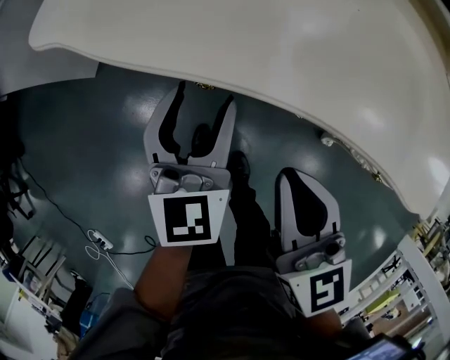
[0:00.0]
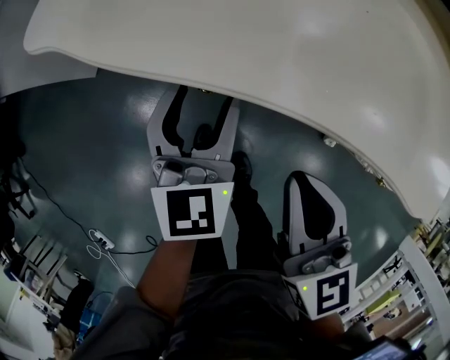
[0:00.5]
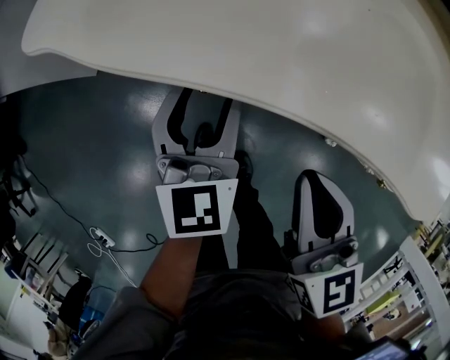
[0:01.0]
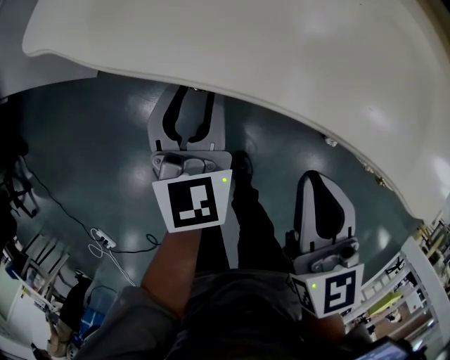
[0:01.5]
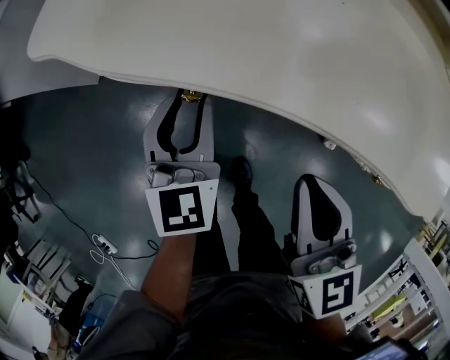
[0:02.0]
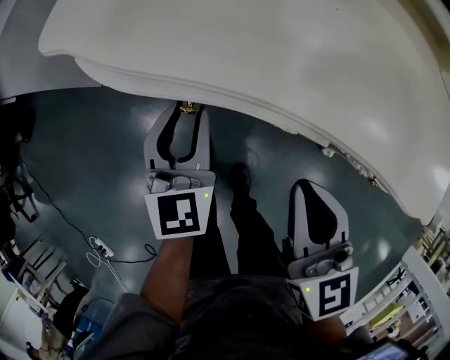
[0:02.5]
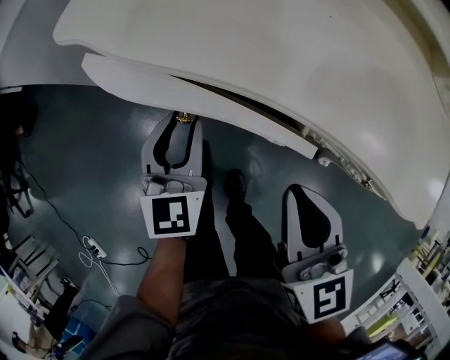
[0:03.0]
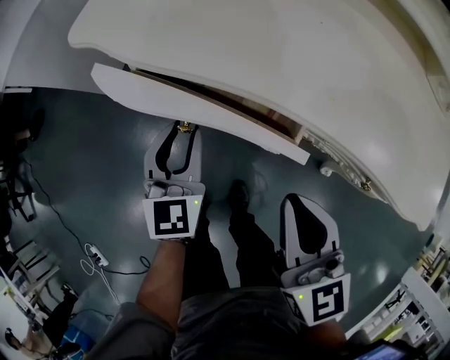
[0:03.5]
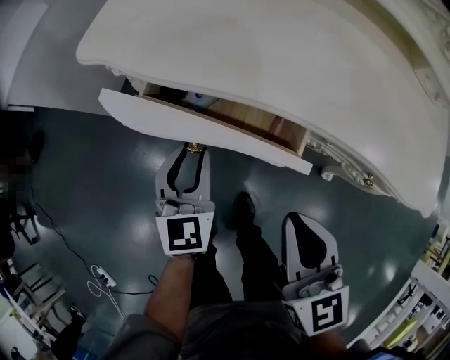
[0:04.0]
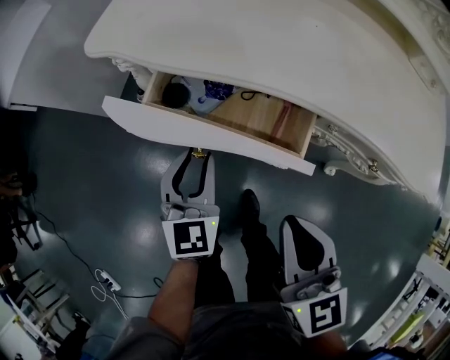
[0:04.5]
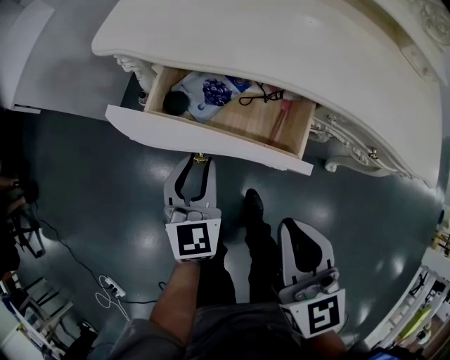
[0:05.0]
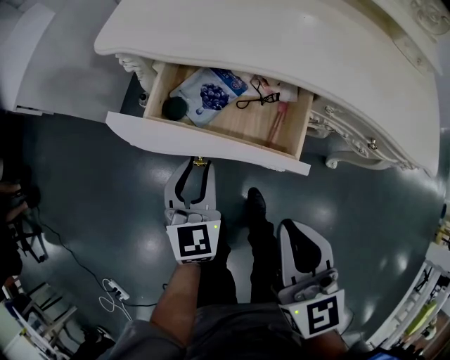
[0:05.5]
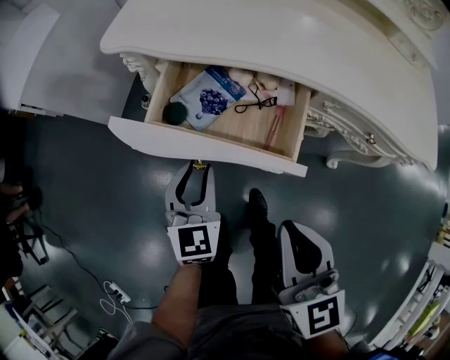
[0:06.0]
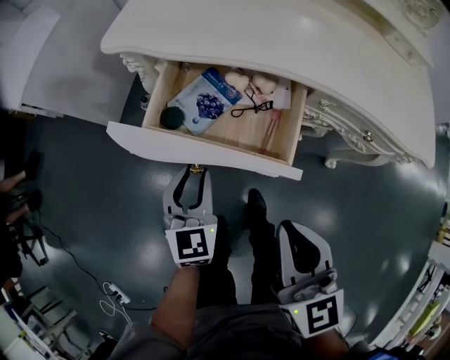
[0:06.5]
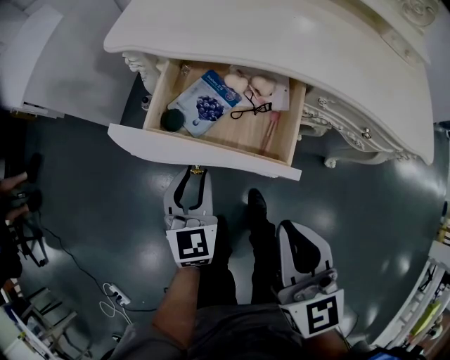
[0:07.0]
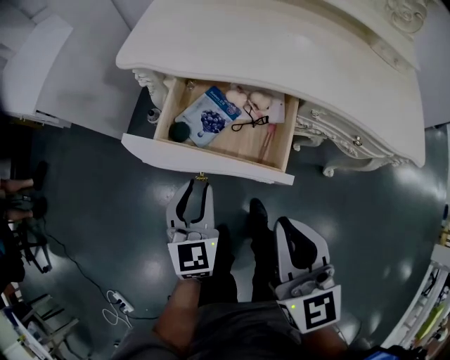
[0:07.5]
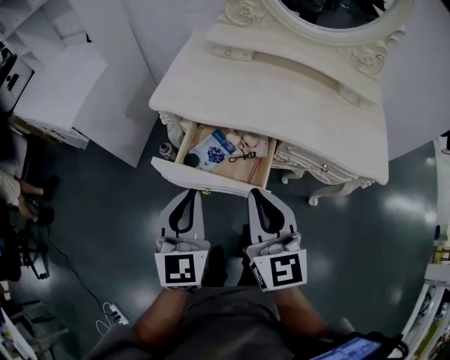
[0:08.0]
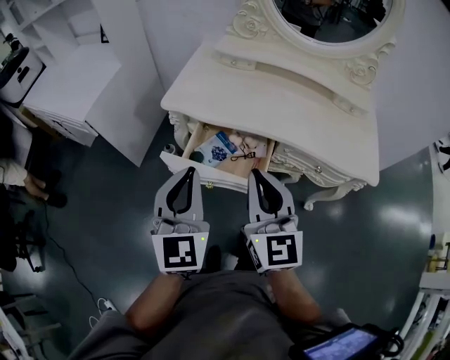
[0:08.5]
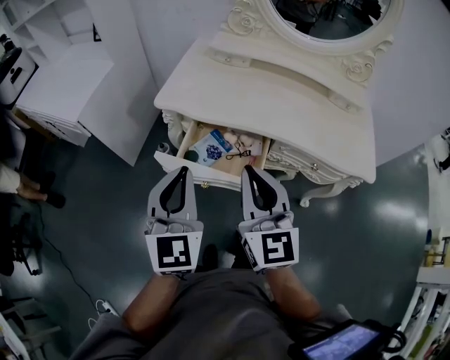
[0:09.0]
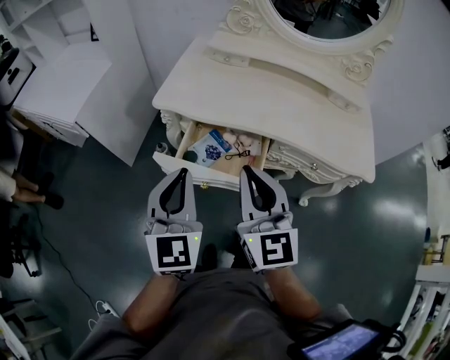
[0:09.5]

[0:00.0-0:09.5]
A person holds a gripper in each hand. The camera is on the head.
0:00.0 to 0:02.0: The left gripper closes.
0:02.0 to 0:04.0: The two grippers go roughly 5 cm backward.
0:04.0 to 0:05.5: The two grippers go roughly 5 cm backward.
0:05.5 to 0:07.5: The right gripper changes place by roughly 5 cm. The left gripper is displaced backward by about 5 cm.
0:07.5 to 0:09.5: The right gripper shifts some 15 cm upward. The left gripper shifts about 30 cm upward, and closes.

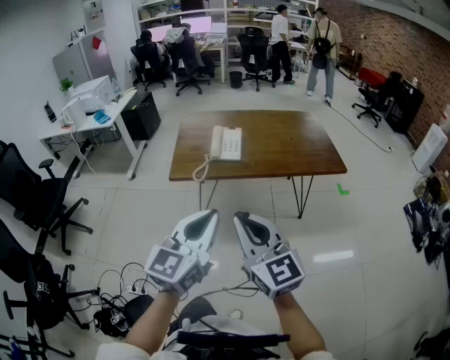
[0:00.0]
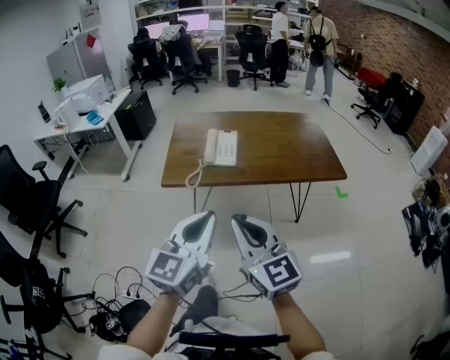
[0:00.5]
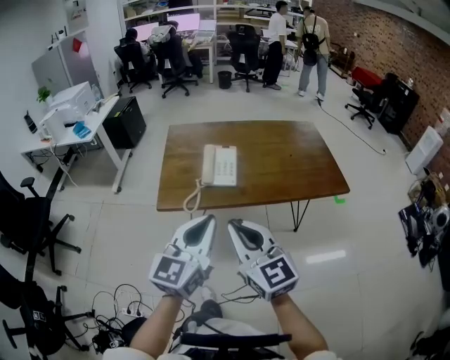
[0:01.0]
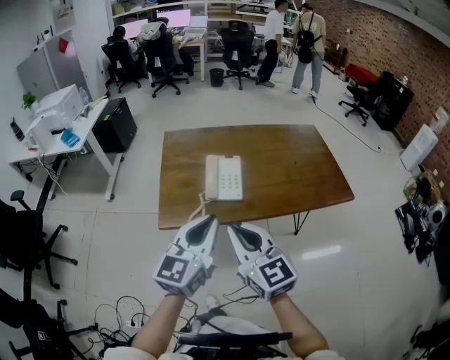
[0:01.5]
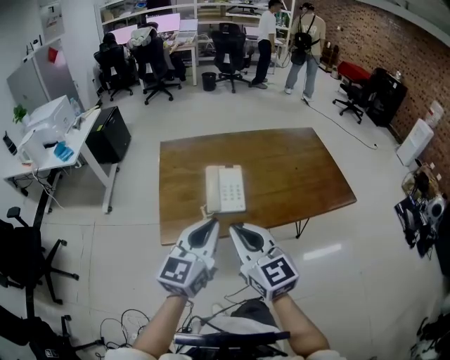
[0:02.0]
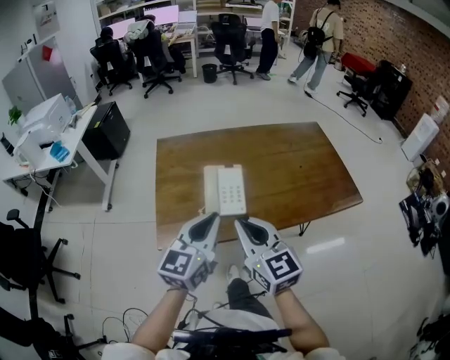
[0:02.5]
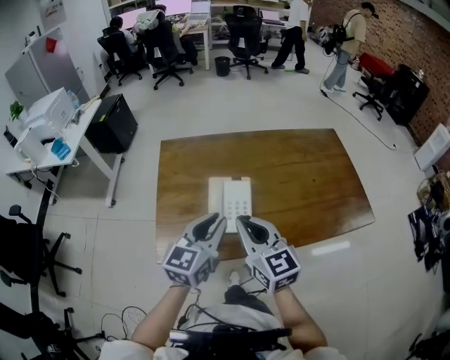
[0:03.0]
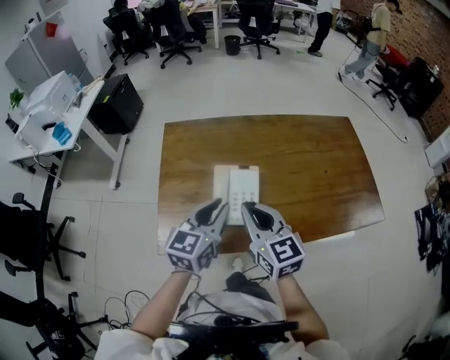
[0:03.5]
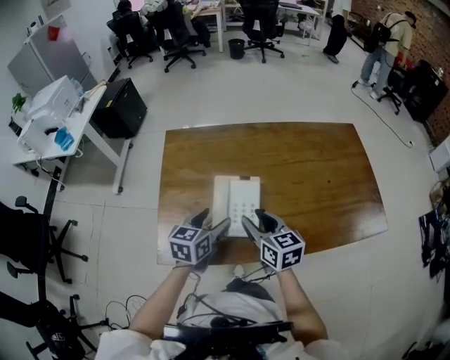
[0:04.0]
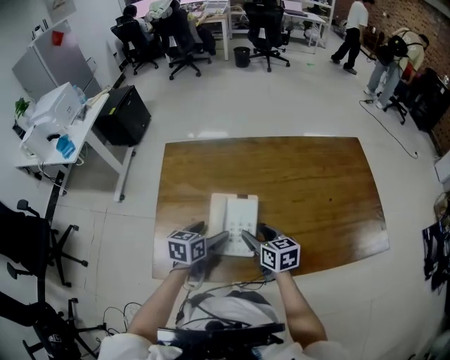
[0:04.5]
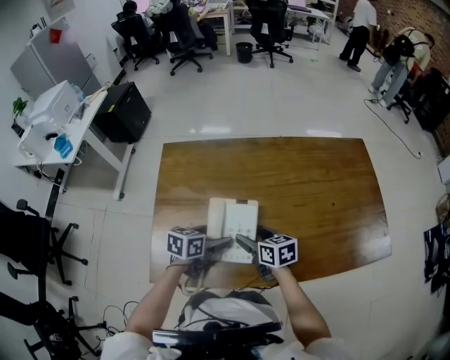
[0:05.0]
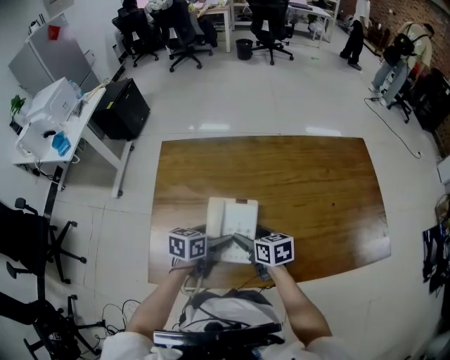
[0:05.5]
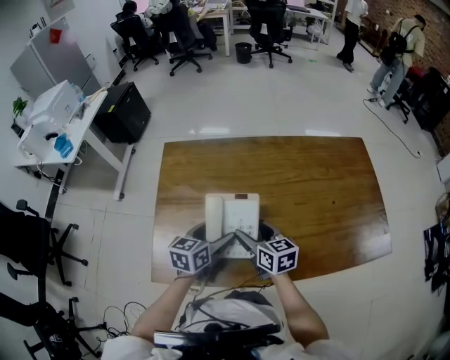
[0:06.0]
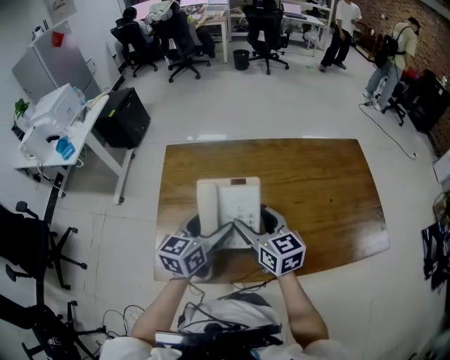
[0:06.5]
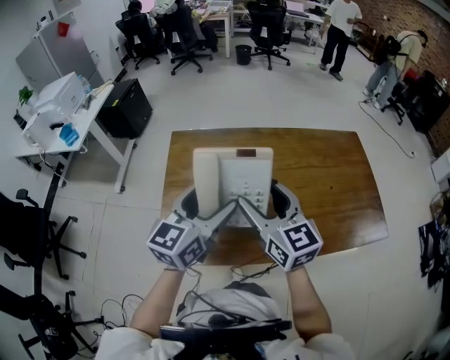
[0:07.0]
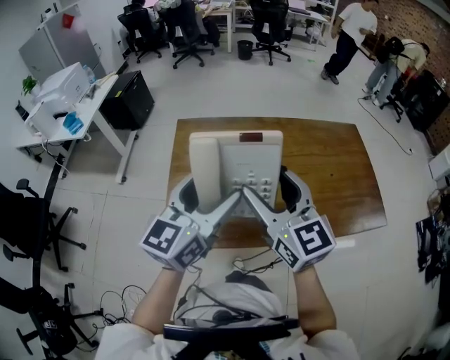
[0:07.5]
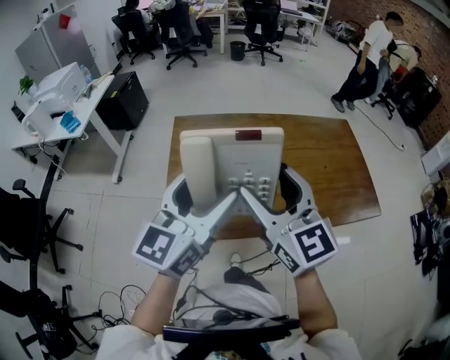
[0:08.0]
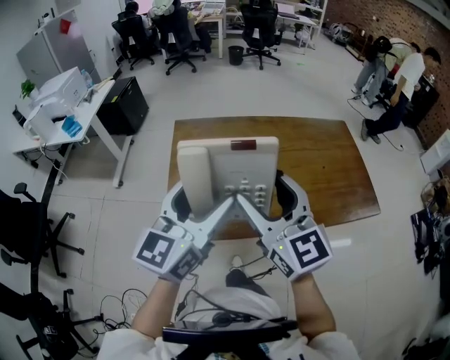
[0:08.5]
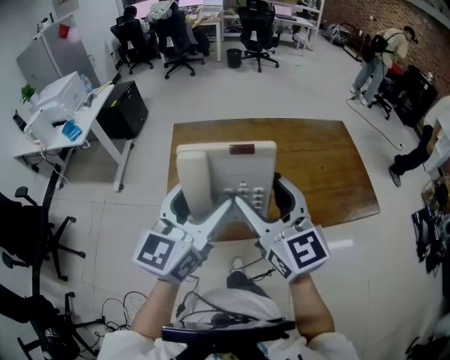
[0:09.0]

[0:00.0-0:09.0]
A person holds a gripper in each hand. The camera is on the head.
0:00.0 to 0:02.0: The two grippers go about 30 cm forward.
0:02.0 to 0:04.5: Both grippers travel together downward and forward, about 35 cm. The right gripper turns by roughly 40 degrees, and opens up. The left gripper tilts its fingers about 30 degrees downward, and opens up.
0:04.5 to 0:07.0: Both grippers travel together upward, approximately 25 cm. The left gripper swivels approximately 30 degrees, while the right gripper turns by approximately 30 degrees.
0:07.0 to 0:09.0: The two grippers go some 15 cm backward and upward.

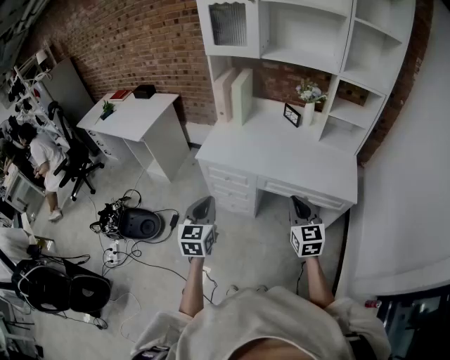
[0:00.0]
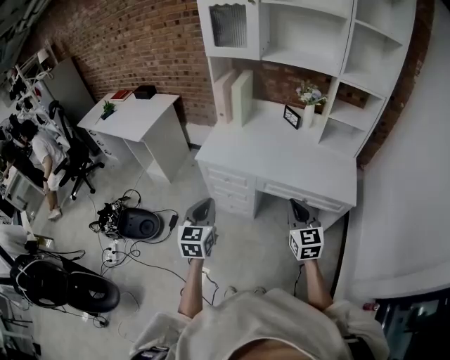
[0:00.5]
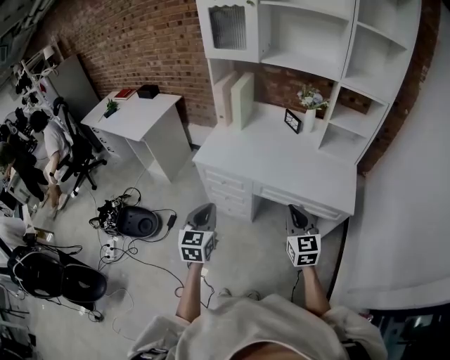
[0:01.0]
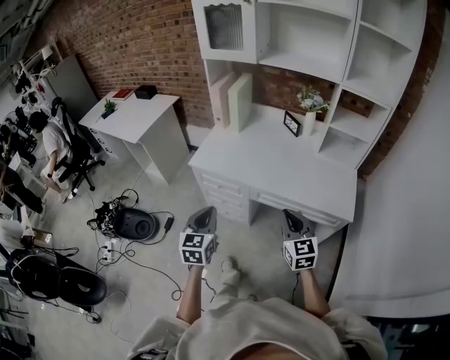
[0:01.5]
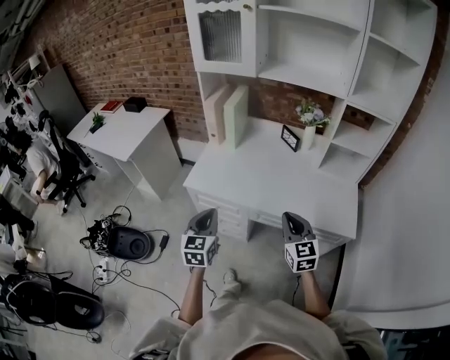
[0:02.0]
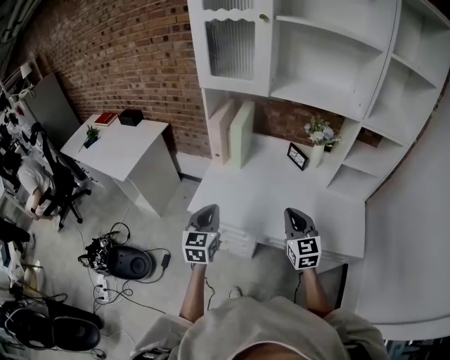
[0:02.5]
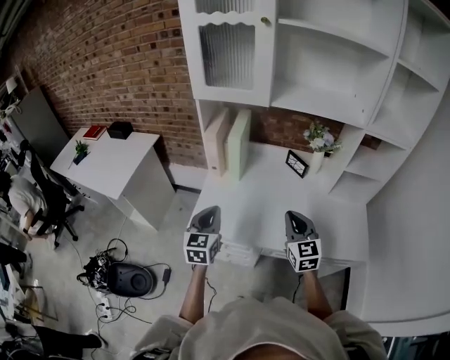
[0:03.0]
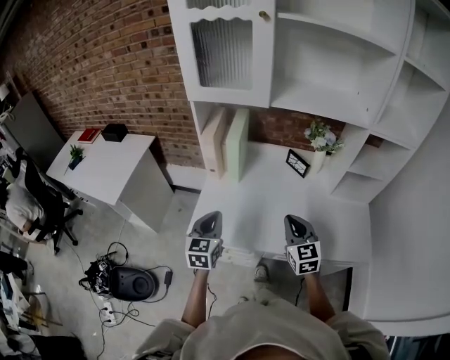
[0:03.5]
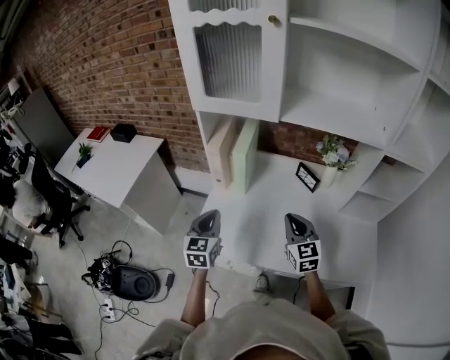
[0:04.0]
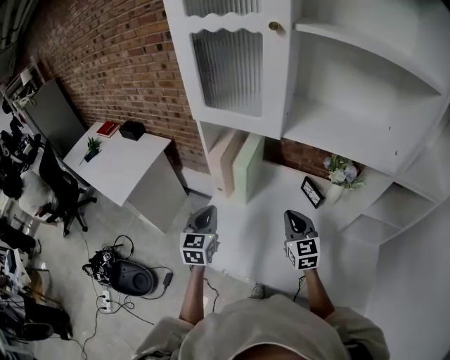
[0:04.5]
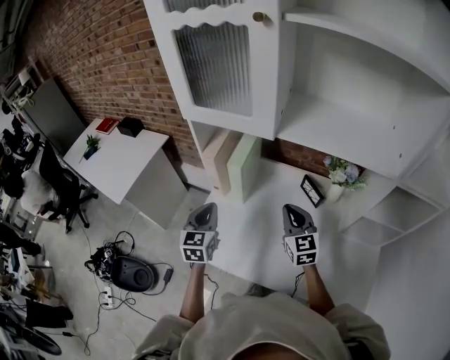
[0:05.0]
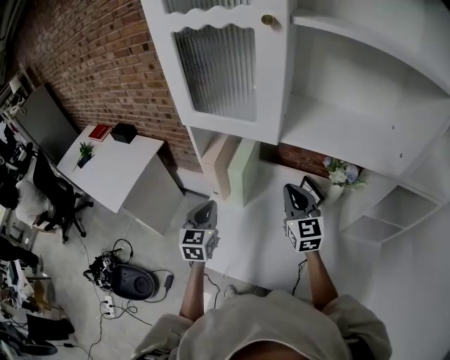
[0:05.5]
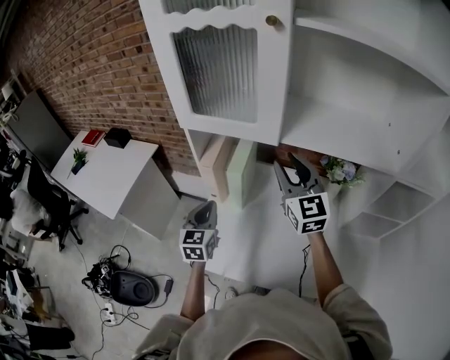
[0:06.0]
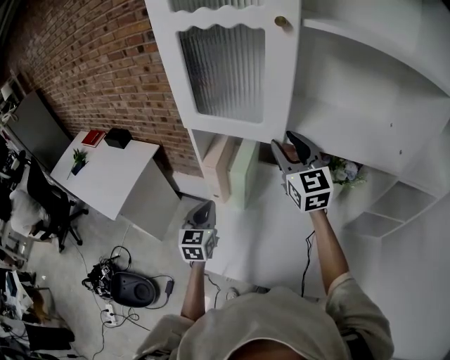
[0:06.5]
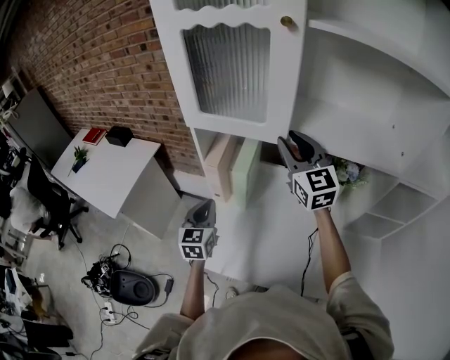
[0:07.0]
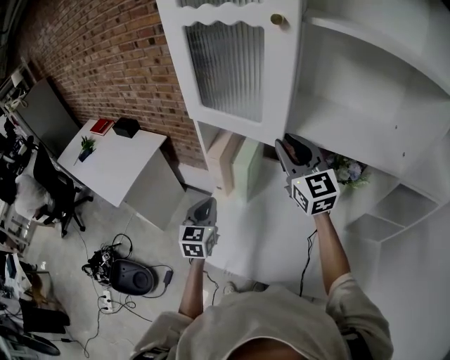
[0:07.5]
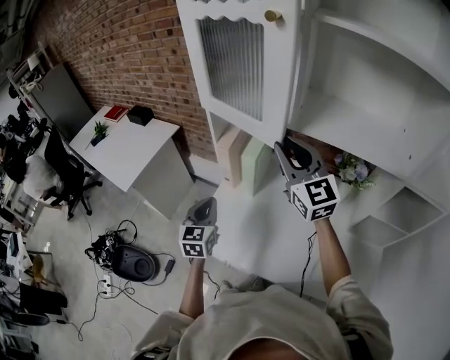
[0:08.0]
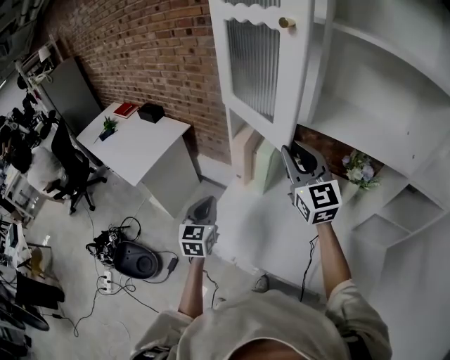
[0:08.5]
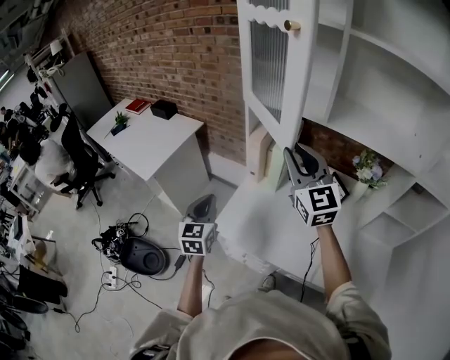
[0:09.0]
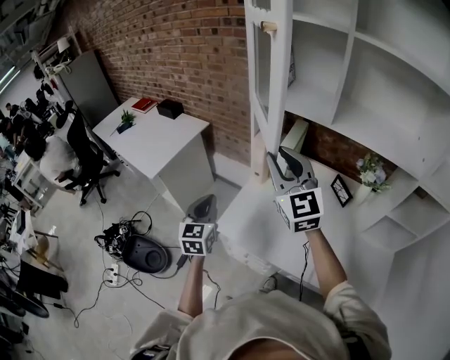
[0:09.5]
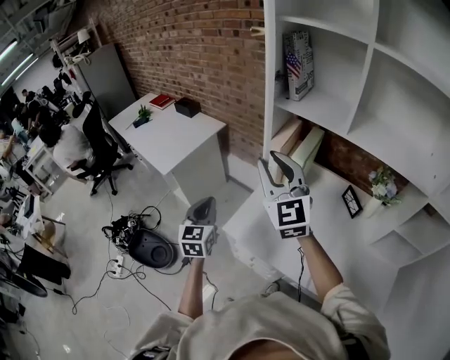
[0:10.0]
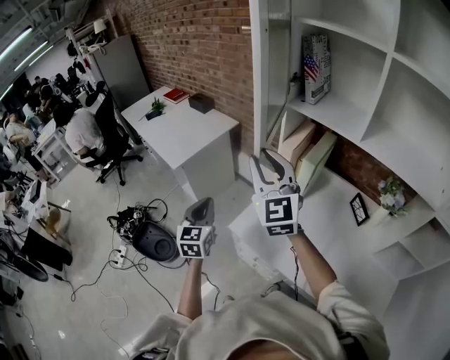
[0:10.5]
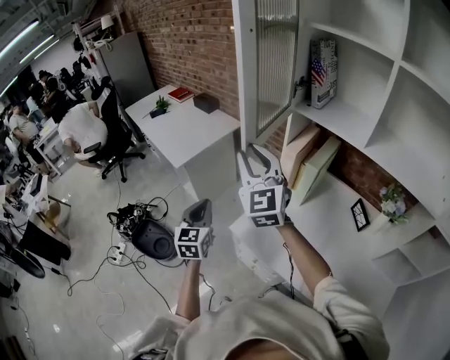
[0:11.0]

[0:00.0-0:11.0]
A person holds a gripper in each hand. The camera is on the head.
0:00.0 to 0:02.0: The two grippers go about 15 cm forward.
0:02.0 to 0:03.5: The two grippers go some 25 cm forward.
0:03.5 to 0:05.5: The grippers both shift forward by roughly 20 cm.
0:05.5 to 0:07.5: The right gripper moves upward, about 15 cm, and opens up.
0:07.5 to 0:09.0: Both grippers move to the left and backward, about 15 cm.
0:09.0 to 0:11.0: The right gripper shifts about 20 cm to the left. The left gripper moves to the left, some 10 cm.
